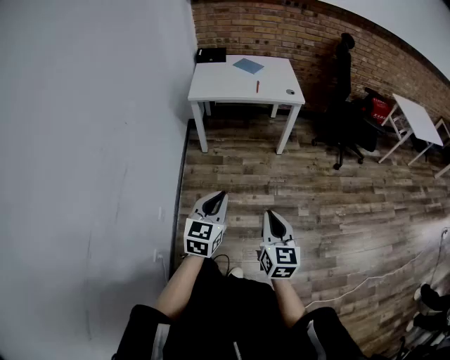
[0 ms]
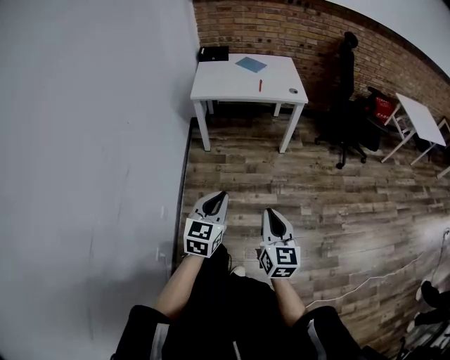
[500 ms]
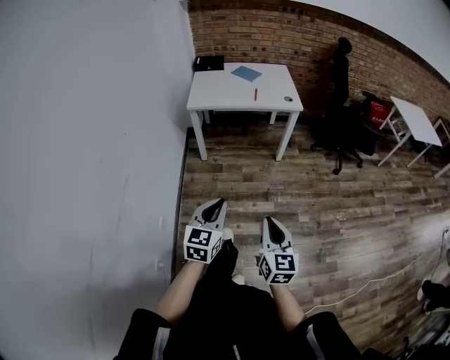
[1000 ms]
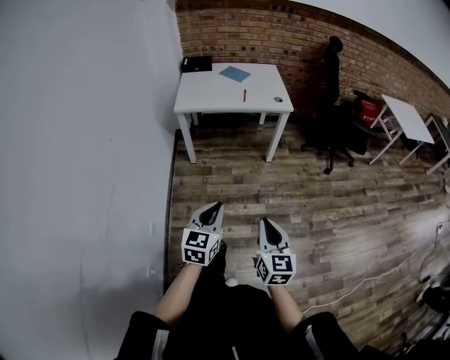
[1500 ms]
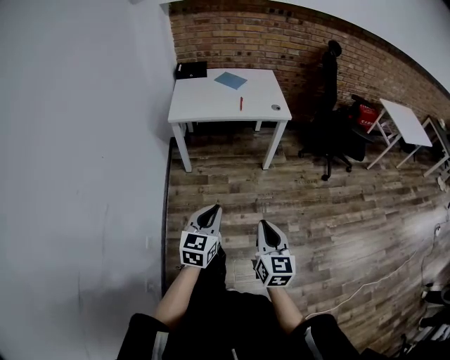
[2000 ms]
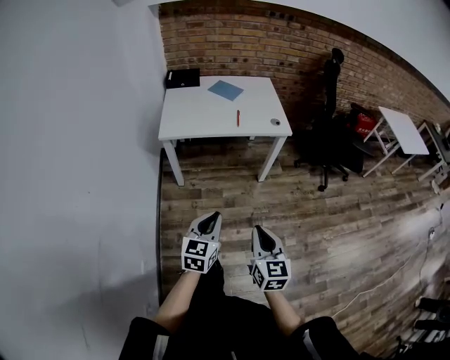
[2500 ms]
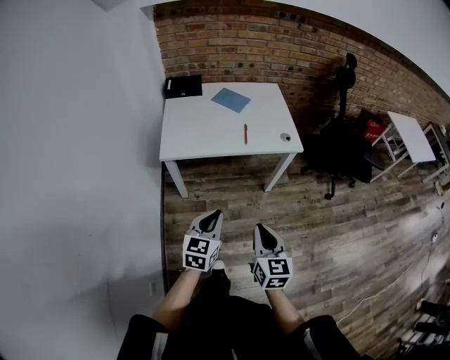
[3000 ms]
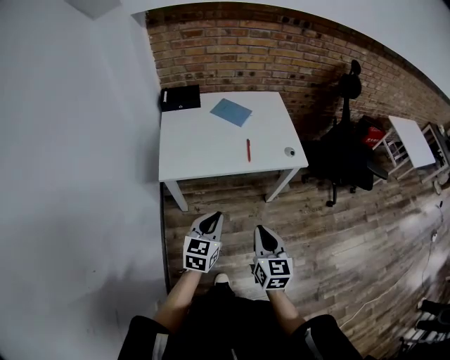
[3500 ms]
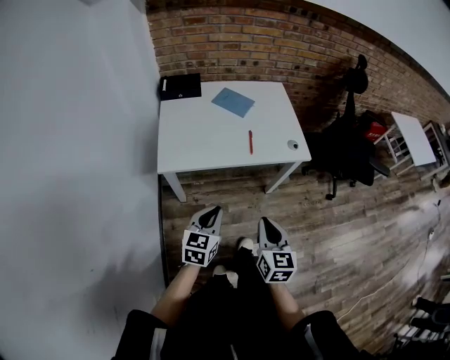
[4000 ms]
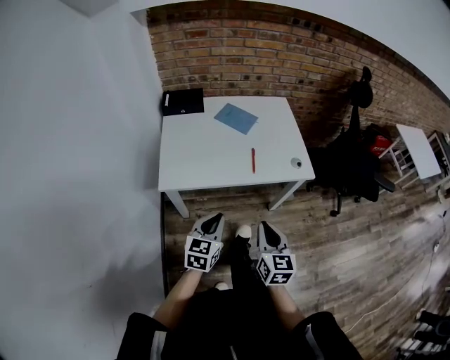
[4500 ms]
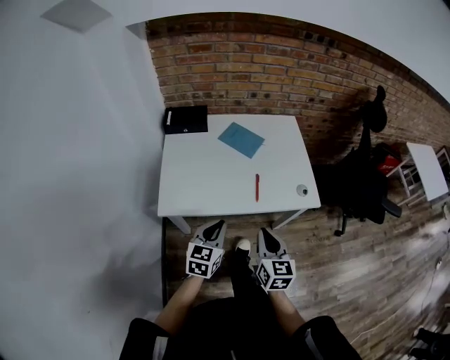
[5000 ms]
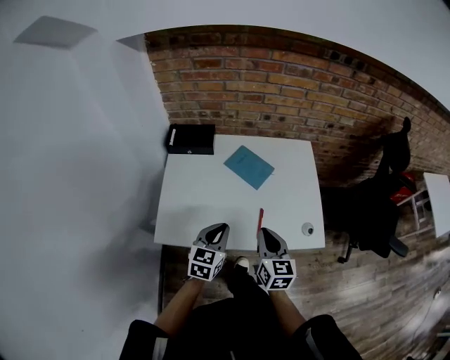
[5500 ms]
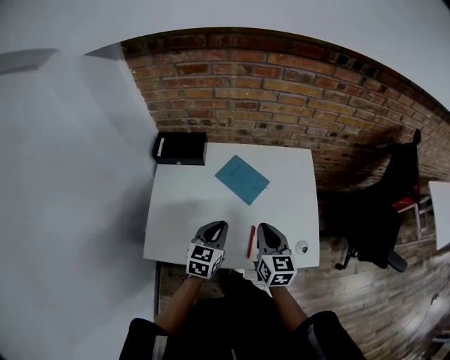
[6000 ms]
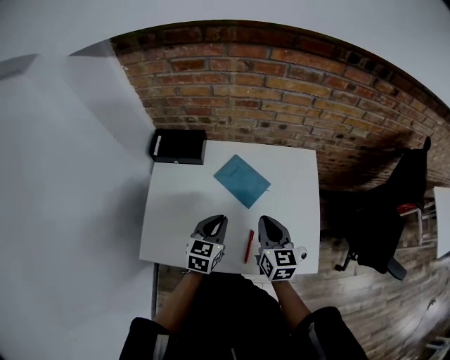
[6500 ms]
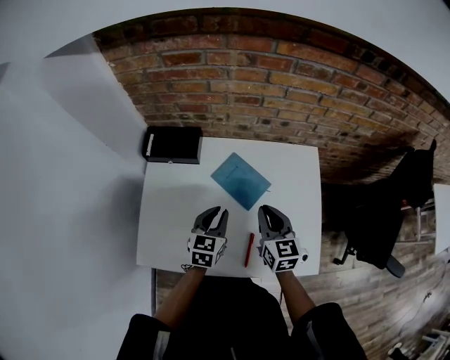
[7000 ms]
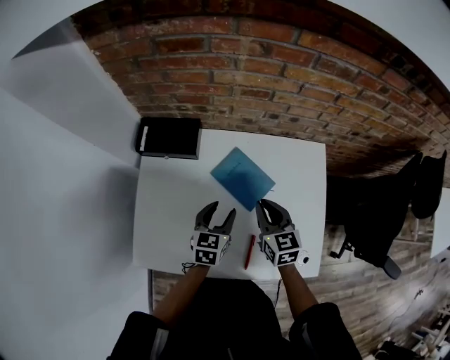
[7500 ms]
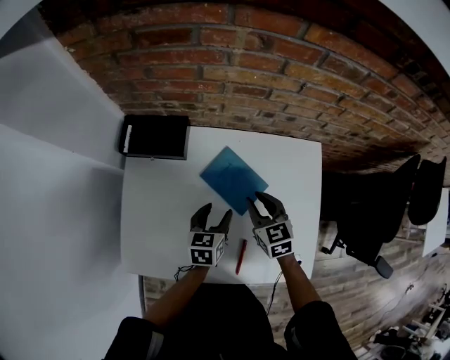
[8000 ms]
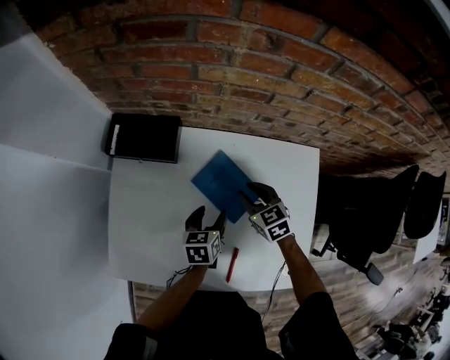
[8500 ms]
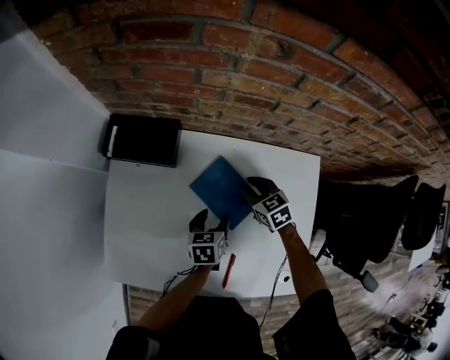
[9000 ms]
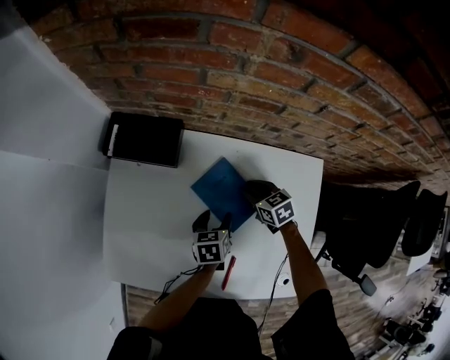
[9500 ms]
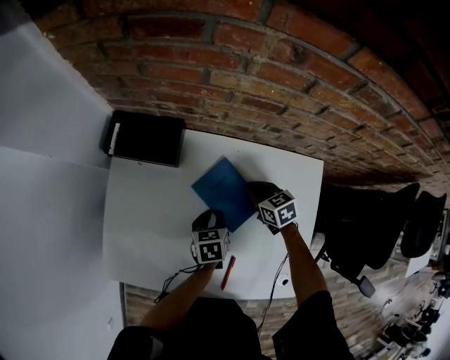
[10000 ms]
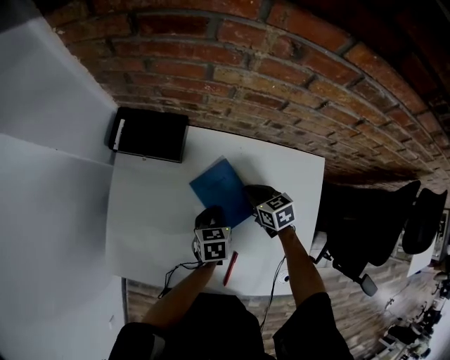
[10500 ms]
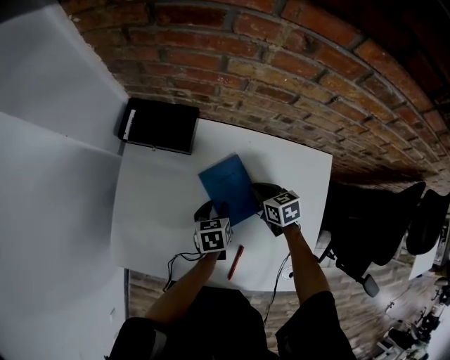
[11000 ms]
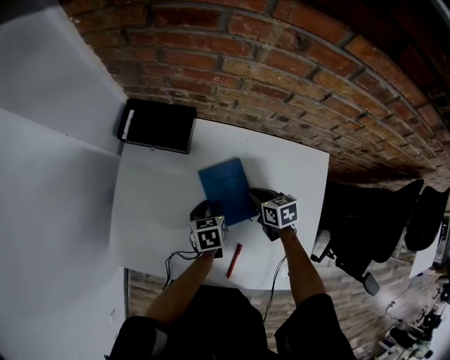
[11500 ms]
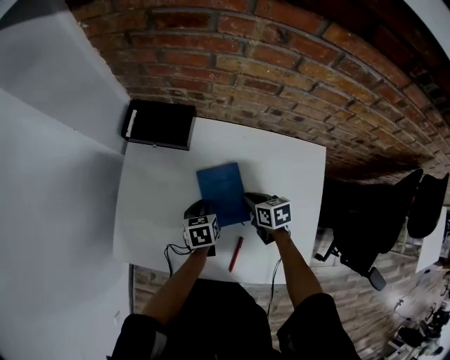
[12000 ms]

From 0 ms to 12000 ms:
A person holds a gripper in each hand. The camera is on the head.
From 0 ms to 2000 ms: Both grippers move forward, roughly 10 cm.
From 2000 ms to 4000 ms: Both grippers are carried forward, approximately 40 cm.
From 4000 ms to 6000 ms: The two grippers travel together, forward, some 50 cm.
From 6000 ms to 8000 ms: The grippers both shift forward and downward by about 20 cm. The left gripper changes its angle by roughly 20 degrees, and opens; the right gripper rotates roughly 30 degrees.
From 8000 ms to 10000 ms: The right gripper heads downward and forward, covering about 15 cm, and rotates some 20 degrees. The left gripper moves downward, about 10 cm, swivels some 20 degrees, and closes its fingers.
From 10000 ms to 12000 ms: The left gripper is displaced to the left by approximately 5 cm. Meanwhile the right gripper goes roughly 10 cm backward and to the left.

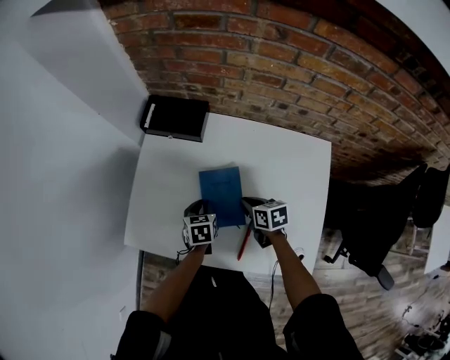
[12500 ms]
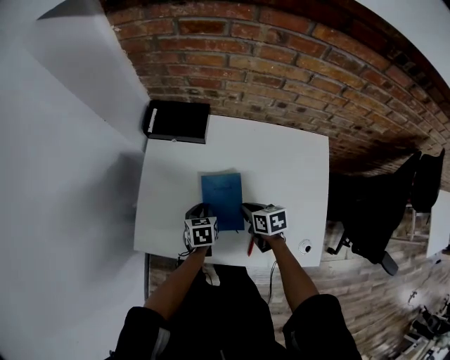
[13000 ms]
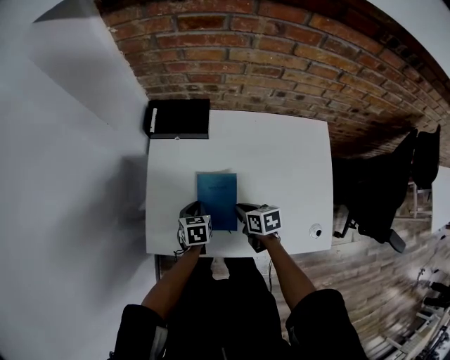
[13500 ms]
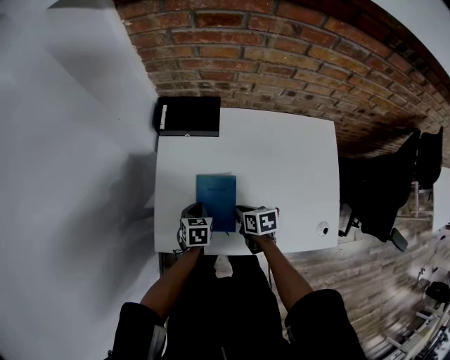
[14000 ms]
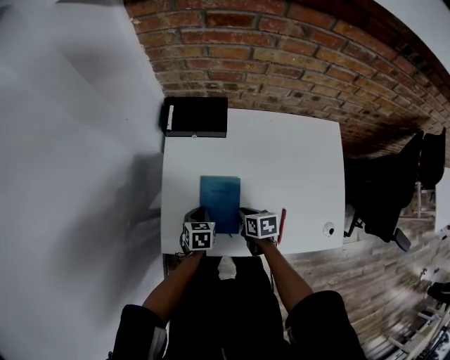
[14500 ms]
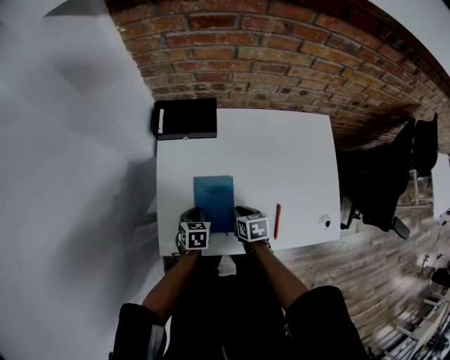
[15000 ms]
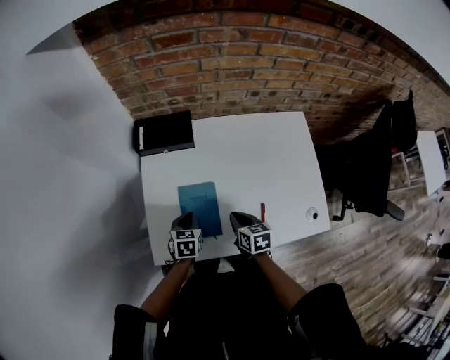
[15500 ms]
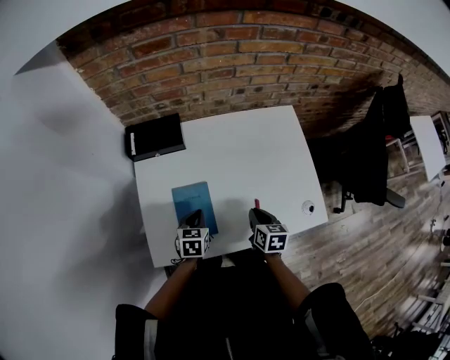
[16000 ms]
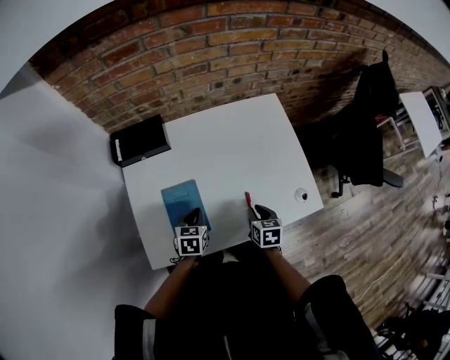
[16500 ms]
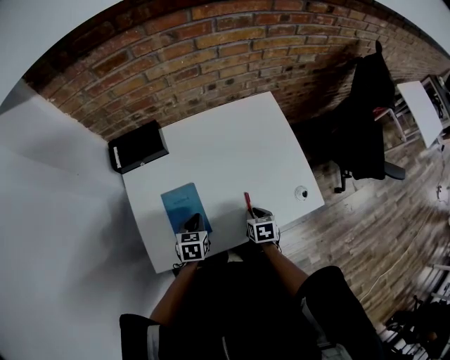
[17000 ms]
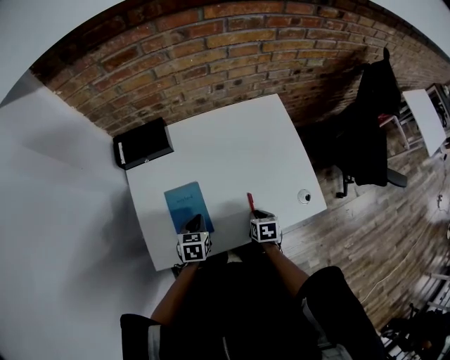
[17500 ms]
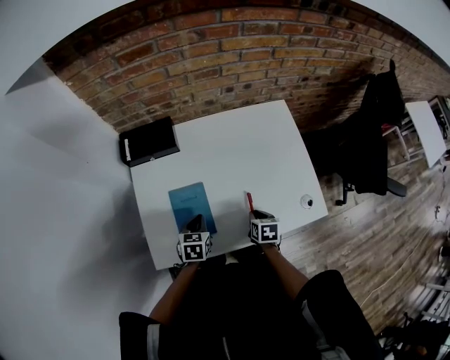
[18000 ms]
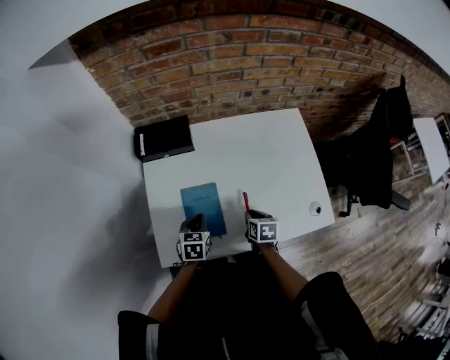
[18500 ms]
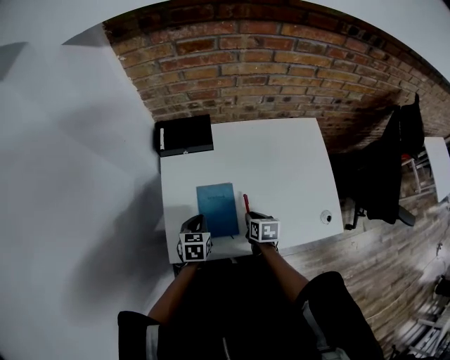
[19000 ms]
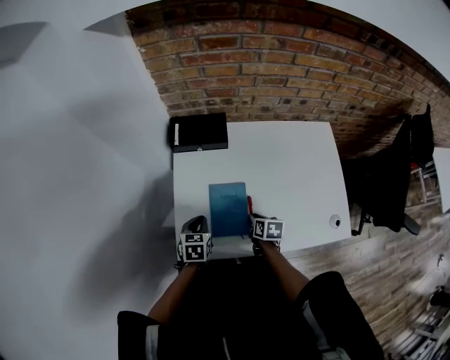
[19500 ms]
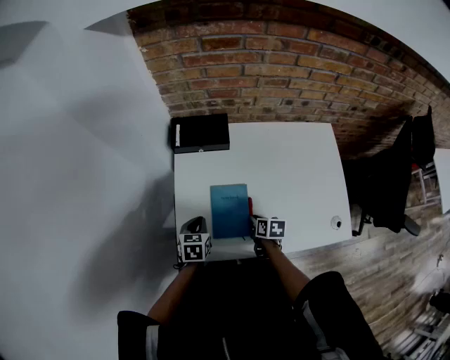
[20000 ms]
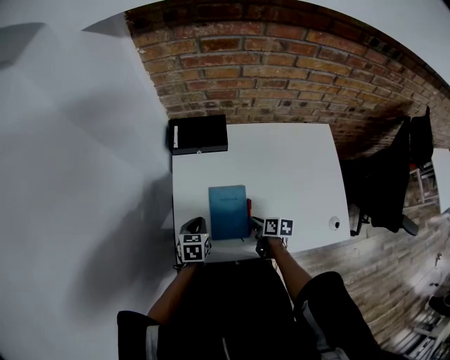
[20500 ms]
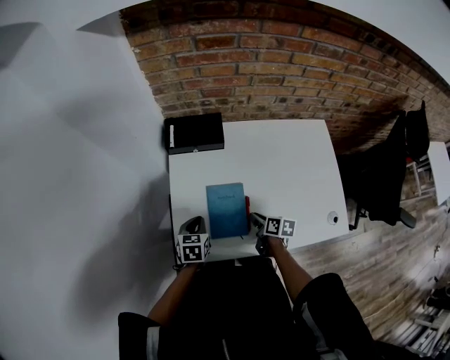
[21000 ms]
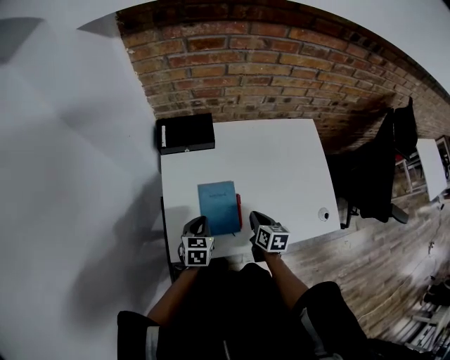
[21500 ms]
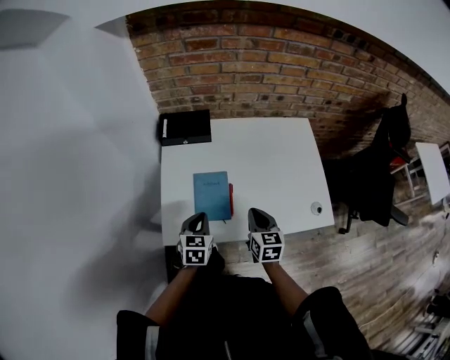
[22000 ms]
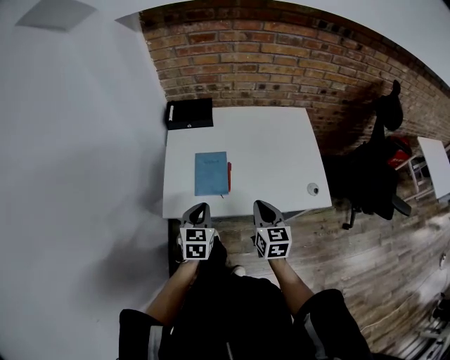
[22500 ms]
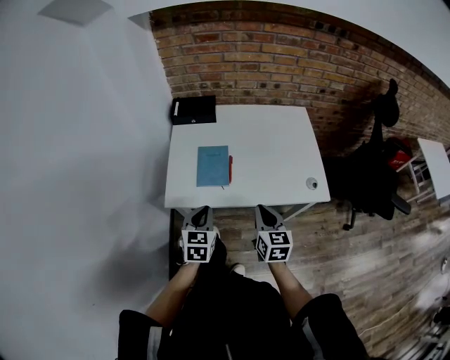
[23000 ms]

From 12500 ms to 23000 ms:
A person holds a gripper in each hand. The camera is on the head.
From 12500 ms to 14500 ms: Both grippers travel together to the left, approximately 15 cm.
From 14500 ms to 16500 ms: The right gripper ends up about 20 cm from where it was, and rotates roughly 30 degrees. The left gripper shifts by roughly 15 cm, and rotates some 20 degrees.
From 16500 ms to 19000 ms: Both grippers move to the left, roughly 10 cm.
From 19000 ms to 21000 ms: The right gripper changes its angle by about 20 degrees. The left gripper travels to the left by roughly 5 cm.
From 21000 ms to 23000 ms: The right gripper travels backward and upward by roughly 30 cm, and swivels about 50 degrees, while the left gripper moves backward, upward and to the right, approximately 30 cm, and changes its angle by some 20 degrees.

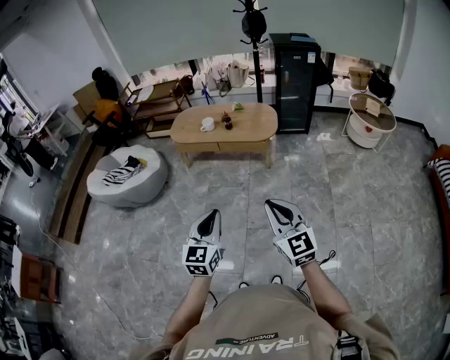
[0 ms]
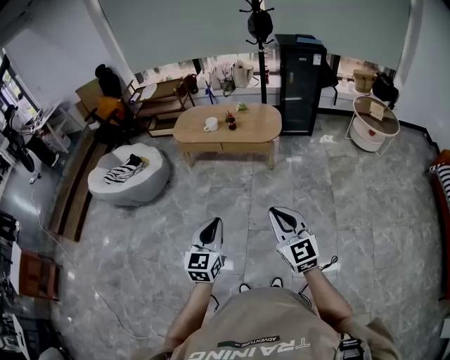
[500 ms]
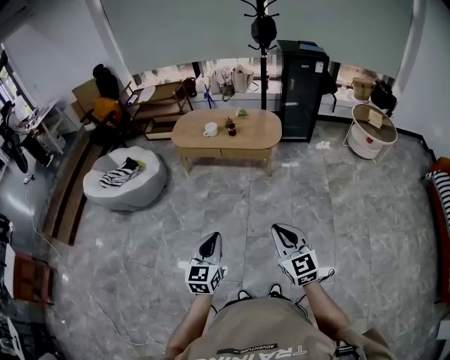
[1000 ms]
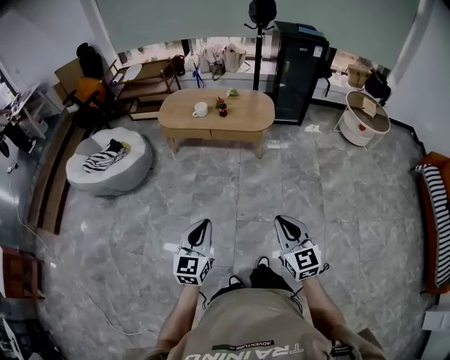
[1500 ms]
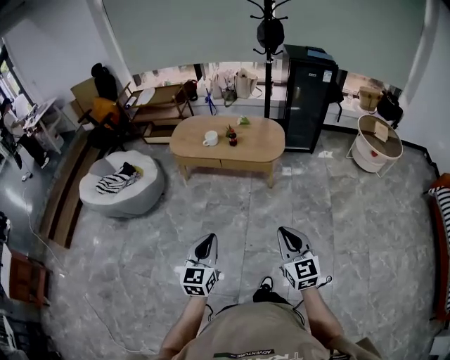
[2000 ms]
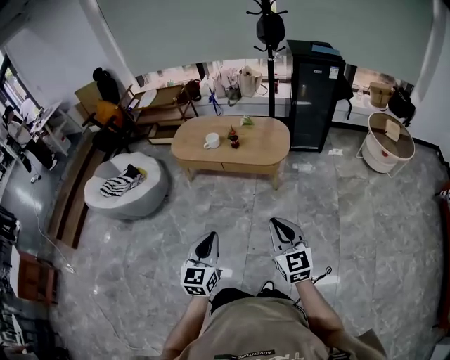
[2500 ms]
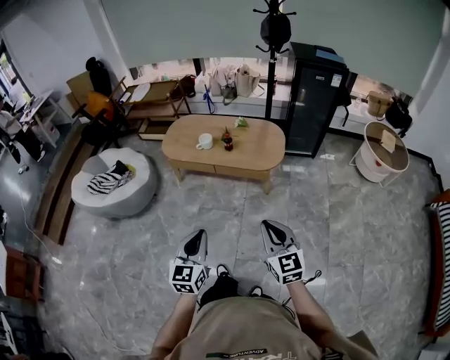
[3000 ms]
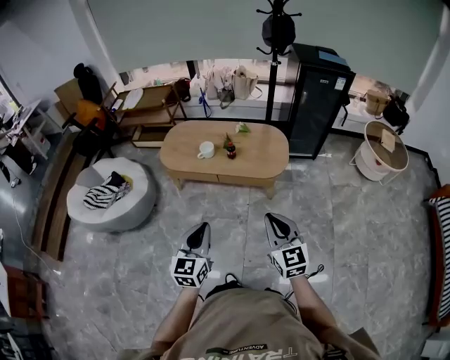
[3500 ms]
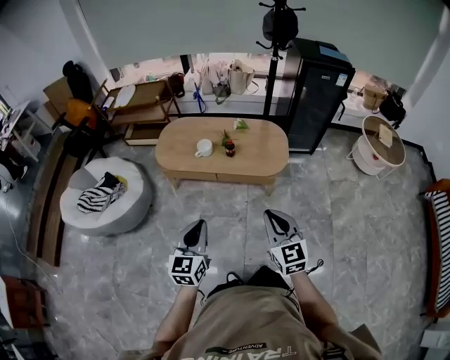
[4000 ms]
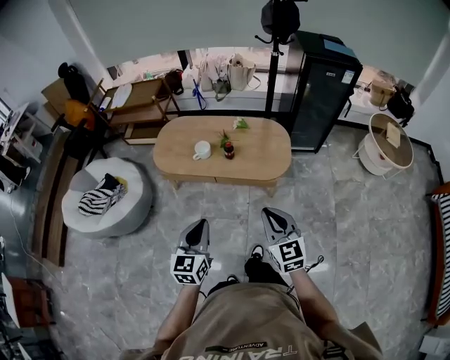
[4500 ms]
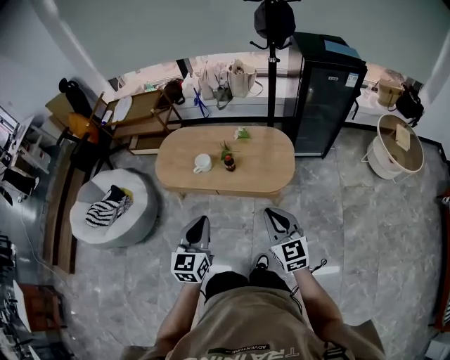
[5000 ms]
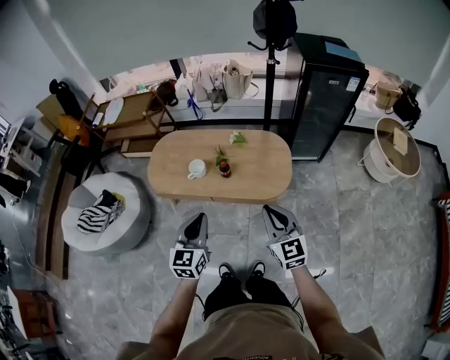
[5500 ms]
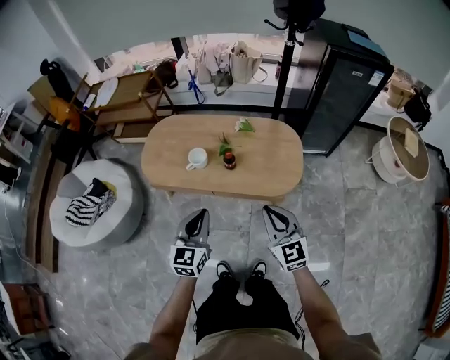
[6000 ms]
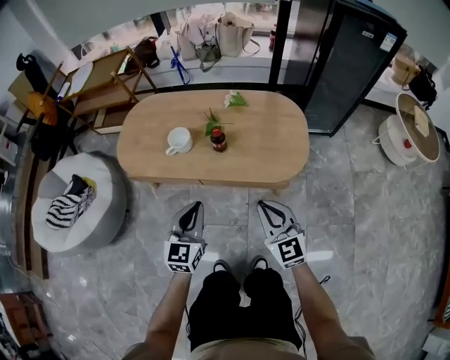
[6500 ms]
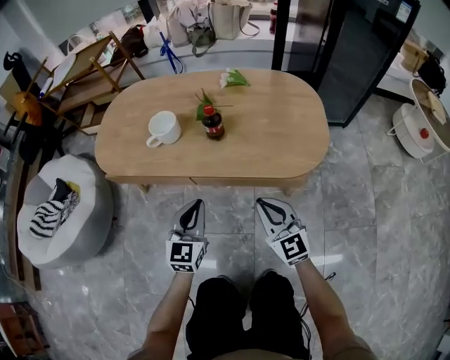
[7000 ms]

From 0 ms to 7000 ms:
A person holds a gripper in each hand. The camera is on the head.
From 0 ms to 2000 ms: Both grippers move forward and downward, about 10 cm.
From 2000 ms to 3500 ms: The grippers both shift forward by approximately 25 cm.
From 3500 ms to 5000 ms: Both grippers travel together forward, some 20 cm.
From 5000 ms to 7000 ms: Both grippers travel together downward, about 50 cm.
